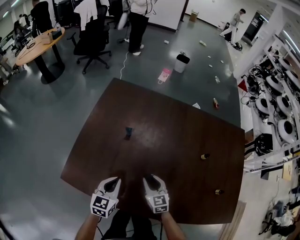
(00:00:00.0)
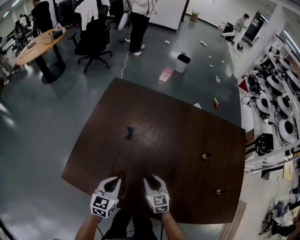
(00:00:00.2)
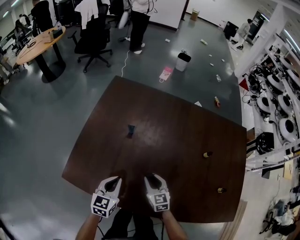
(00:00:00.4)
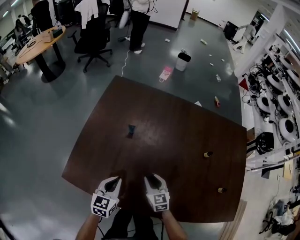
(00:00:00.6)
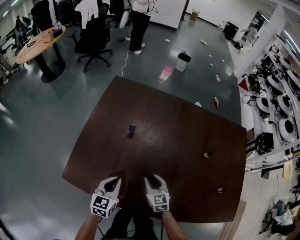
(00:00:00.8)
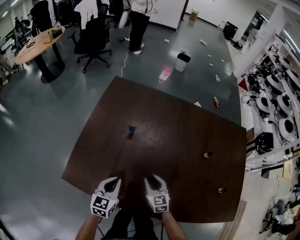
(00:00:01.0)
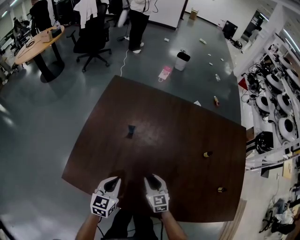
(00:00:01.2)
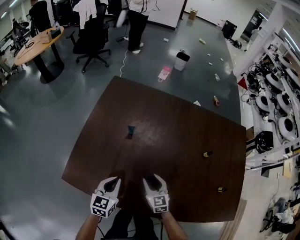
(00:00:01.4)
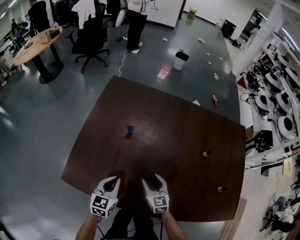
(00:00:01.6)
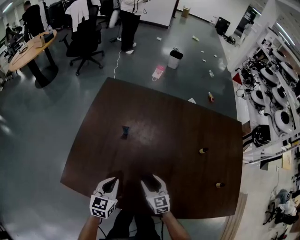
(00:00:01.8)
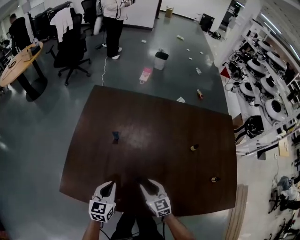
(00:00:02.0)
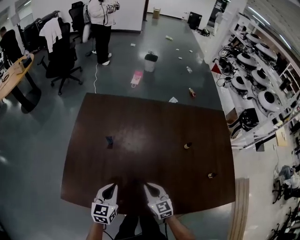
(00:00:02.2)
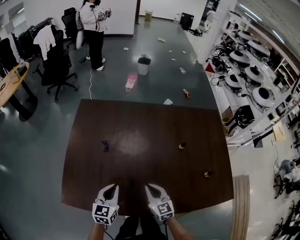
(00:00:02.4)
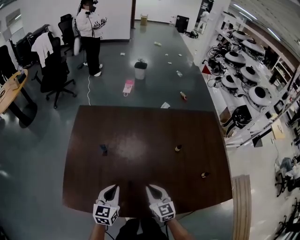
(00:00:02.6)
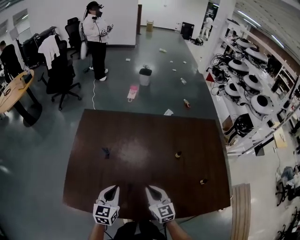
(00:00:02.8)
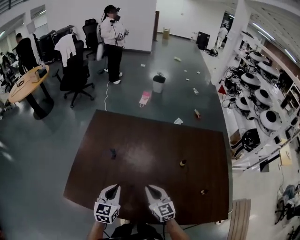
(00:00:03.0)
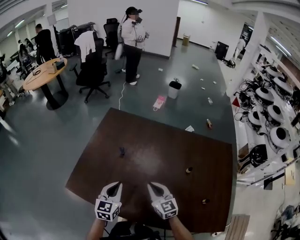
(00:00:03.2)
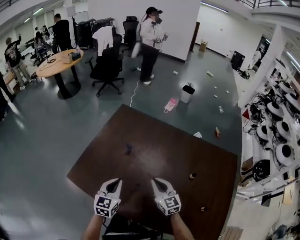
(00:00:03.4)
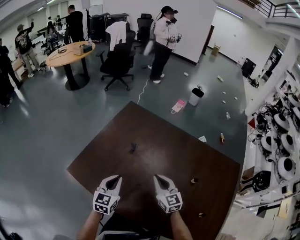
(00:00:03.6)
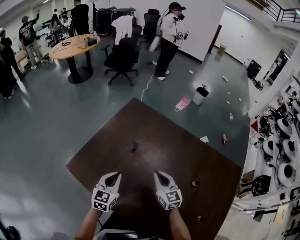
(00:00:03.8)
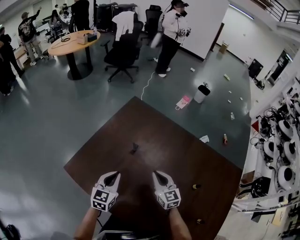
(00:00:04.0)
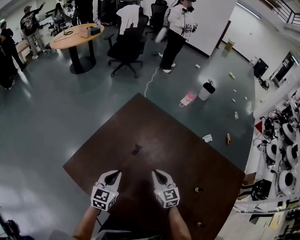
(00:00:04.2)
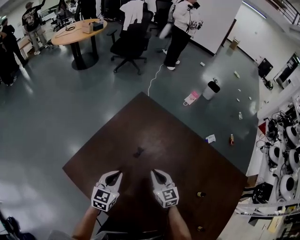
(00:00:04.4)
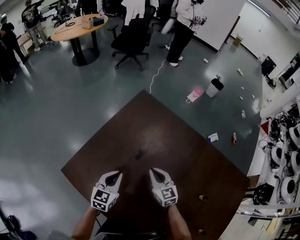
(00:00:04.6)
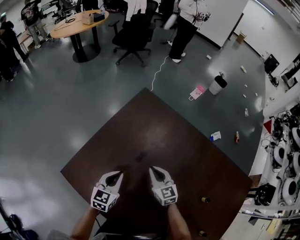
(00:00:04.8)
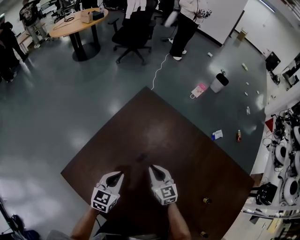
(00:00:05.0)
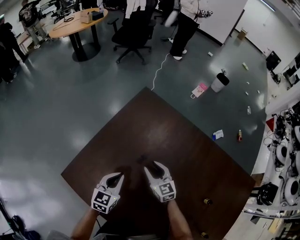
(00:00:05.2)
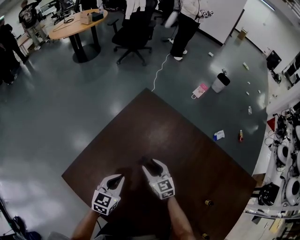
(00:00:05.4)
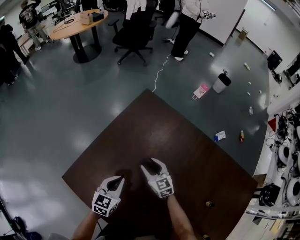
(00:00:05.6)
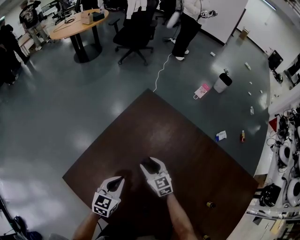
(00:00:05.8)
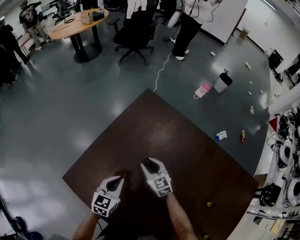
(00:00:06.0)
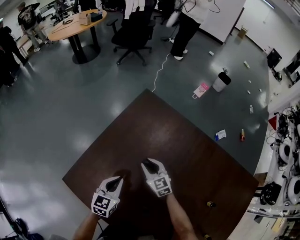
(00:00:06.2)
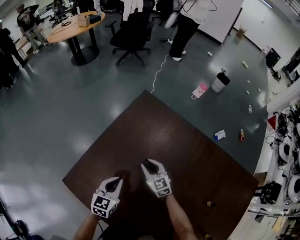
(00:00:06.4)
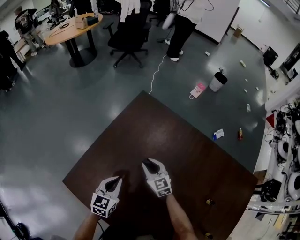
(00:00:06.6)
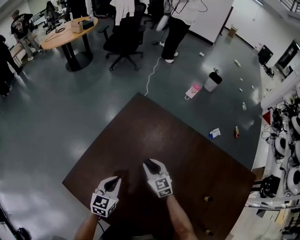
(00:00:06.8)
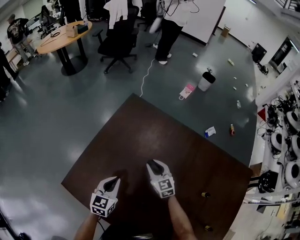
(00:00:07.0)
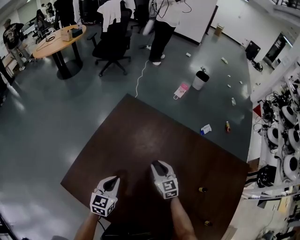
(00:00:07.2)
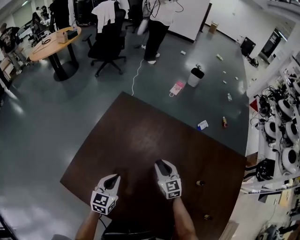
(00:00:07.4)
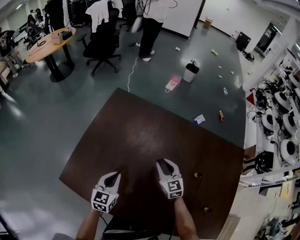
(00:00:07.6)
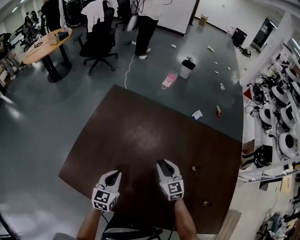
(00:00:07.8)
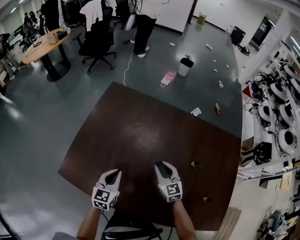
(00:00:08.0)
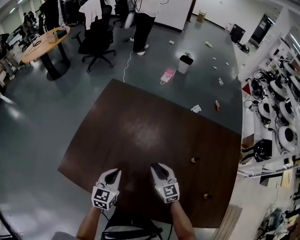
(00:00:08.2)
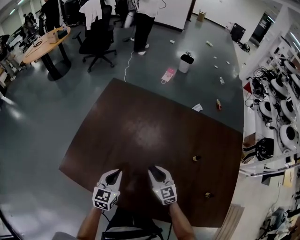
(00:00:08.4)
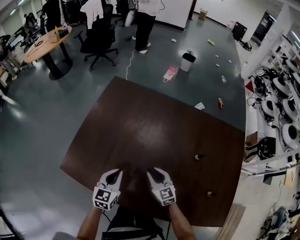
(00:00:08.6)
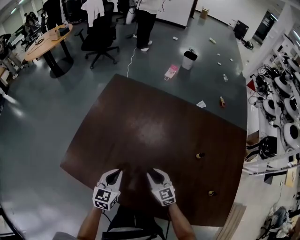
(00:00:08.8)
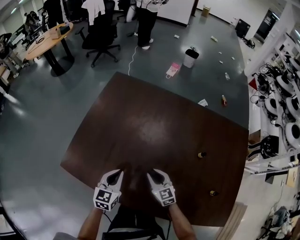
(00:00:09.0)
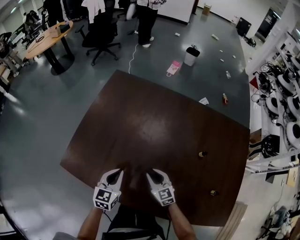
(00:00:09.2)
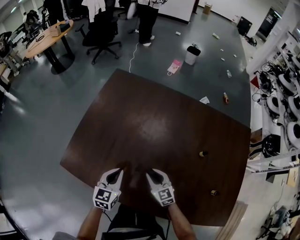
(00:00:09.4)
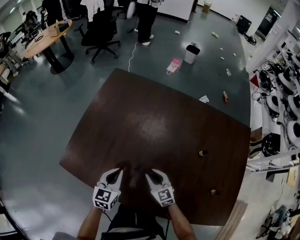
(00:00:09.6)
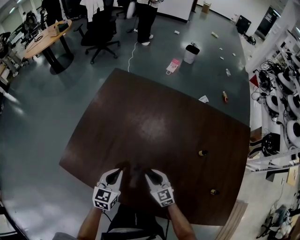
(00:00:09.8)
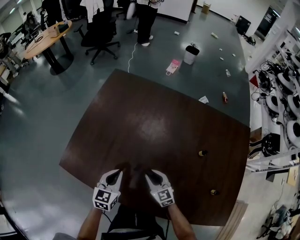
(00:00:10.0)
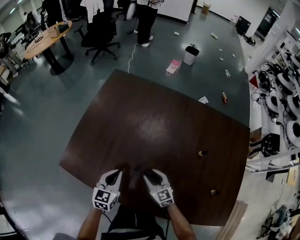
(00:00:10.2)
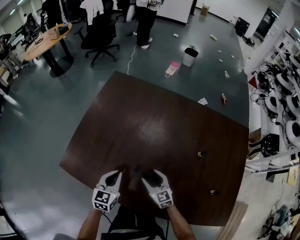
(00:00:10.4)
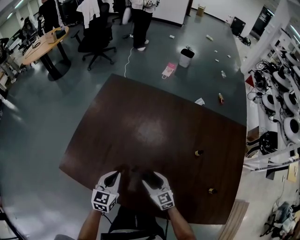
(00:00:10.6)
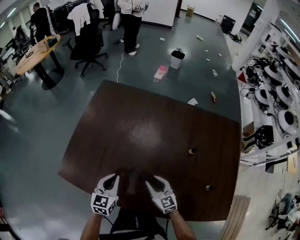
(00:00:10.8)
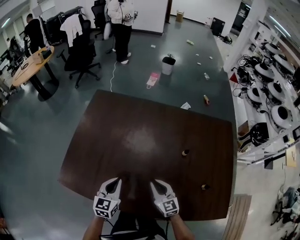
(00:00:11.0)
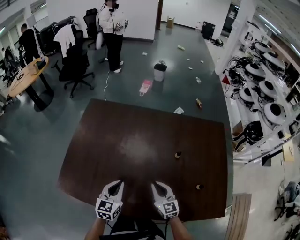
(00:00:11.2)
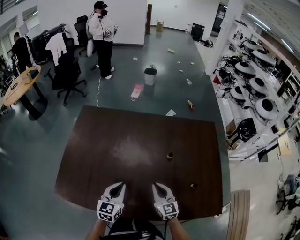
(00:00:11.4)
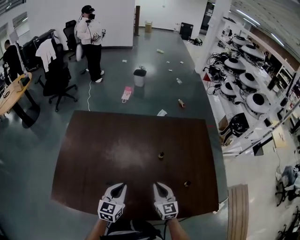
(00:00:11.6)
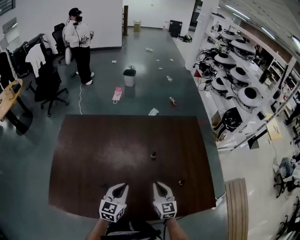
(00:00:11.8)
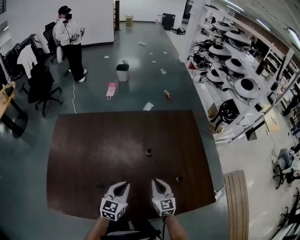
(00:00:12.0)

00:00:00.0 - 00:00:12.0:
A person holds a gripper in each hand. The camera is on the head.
00:00:00.0 - 00:00:01.6: The right gripper opens its fingers.
00:00:01.6 - 00:00:03.0: The grippers both shift upward and to the right by approximately 15 cm. The right gripper closes up.
00:00:03.0 - 00:00:04.4: The right gripper goes approximately 20 cm forward and downward, and changes its angle by approximately 30 degrees. Meanwhile the left gripper shifts some 10 cm forward, downward and to the left.
00:00:04.4 - 00:00:06.0: The right gripper goes about 15 cm forward, downward and to the left, and opens its fingers; the left gripper travels downward by roughly 5 cm.
00:00:06.0 - 00:00:07.6: The left gripper is displaced backward, upward and to the right by some 10 cm. The right gripper travels to the right, backward and upward by about 20 cm, and turns by some 30 degrees.
00:00:07.6 - 00:00:09.0: The right gripper travels backward and downward by some 20 cm, while the left gripper heads backward, covering approximately 10 cm.
00:00:09.0 - 00:00:10.4: The right gripper opens.
00:00:10.4 - 00:00:12.0: The left gripper ends up some 25 cm from where it was, and swivels roughly 30 degrees. The right gripper ends up roughly 25 cm from where it was, changes its angle by approximately 40 degrees, and closes its fingers.

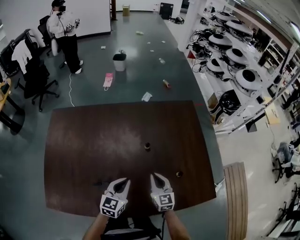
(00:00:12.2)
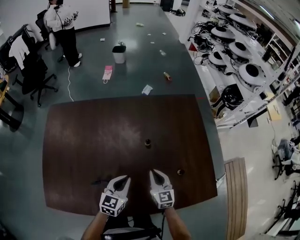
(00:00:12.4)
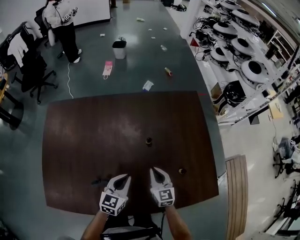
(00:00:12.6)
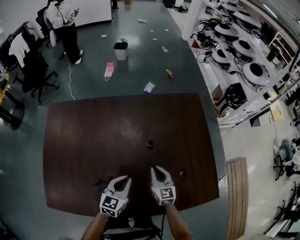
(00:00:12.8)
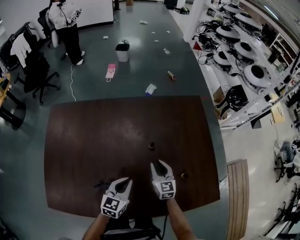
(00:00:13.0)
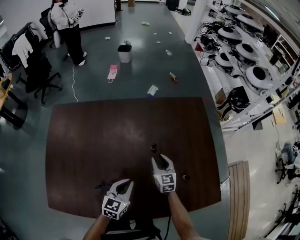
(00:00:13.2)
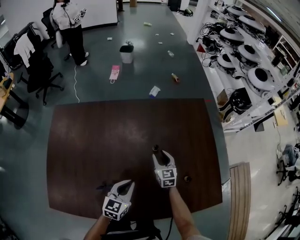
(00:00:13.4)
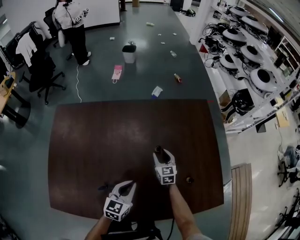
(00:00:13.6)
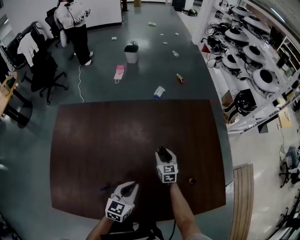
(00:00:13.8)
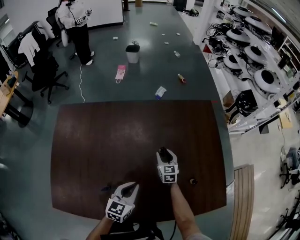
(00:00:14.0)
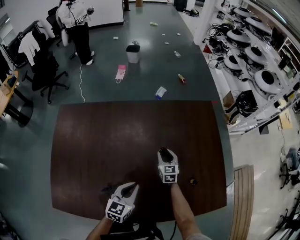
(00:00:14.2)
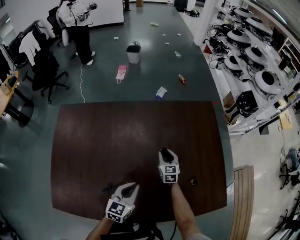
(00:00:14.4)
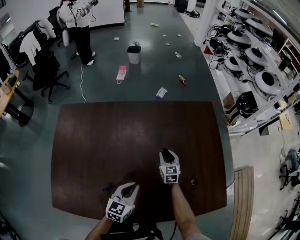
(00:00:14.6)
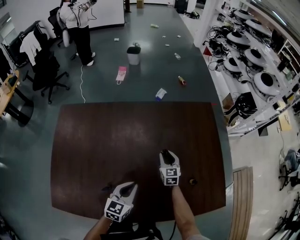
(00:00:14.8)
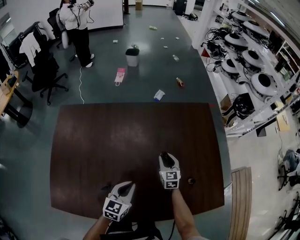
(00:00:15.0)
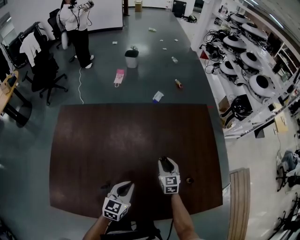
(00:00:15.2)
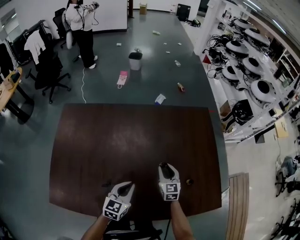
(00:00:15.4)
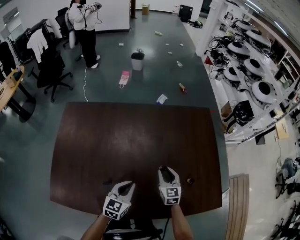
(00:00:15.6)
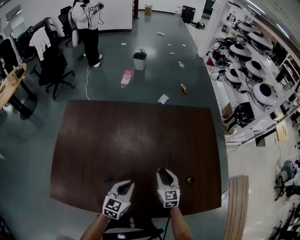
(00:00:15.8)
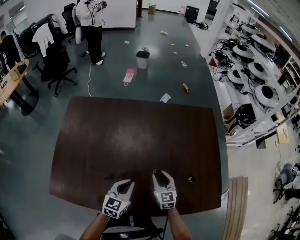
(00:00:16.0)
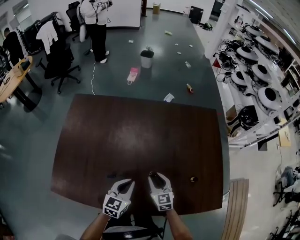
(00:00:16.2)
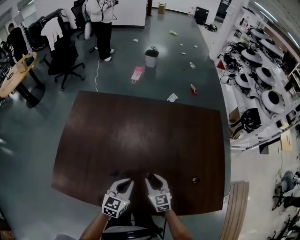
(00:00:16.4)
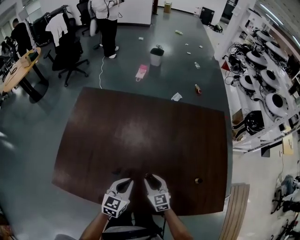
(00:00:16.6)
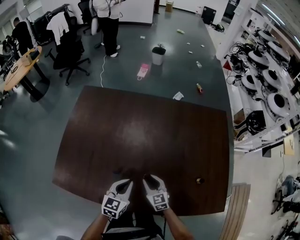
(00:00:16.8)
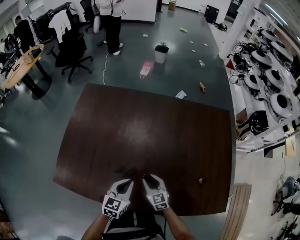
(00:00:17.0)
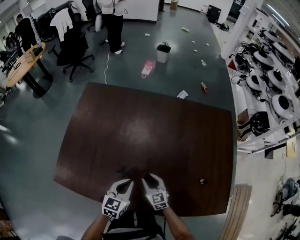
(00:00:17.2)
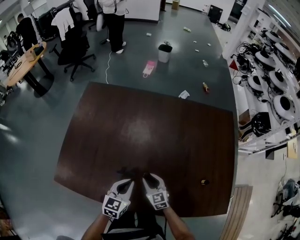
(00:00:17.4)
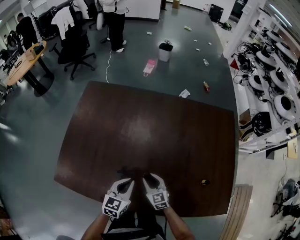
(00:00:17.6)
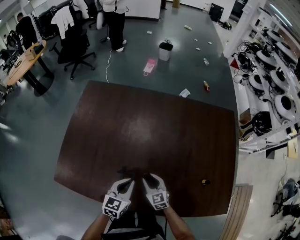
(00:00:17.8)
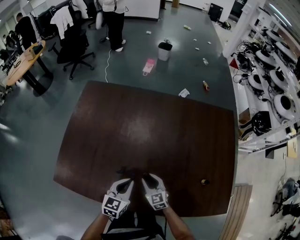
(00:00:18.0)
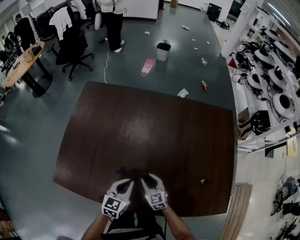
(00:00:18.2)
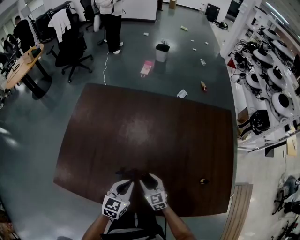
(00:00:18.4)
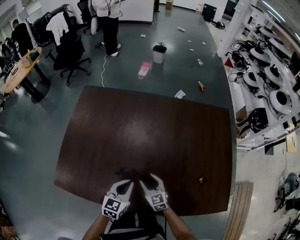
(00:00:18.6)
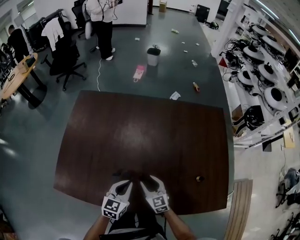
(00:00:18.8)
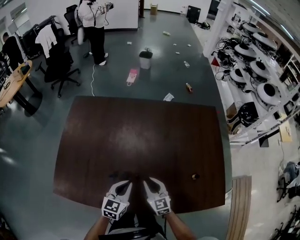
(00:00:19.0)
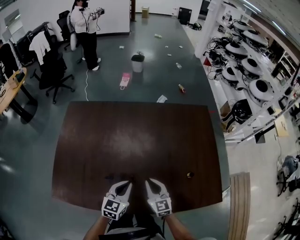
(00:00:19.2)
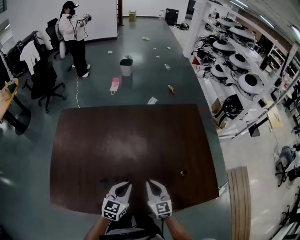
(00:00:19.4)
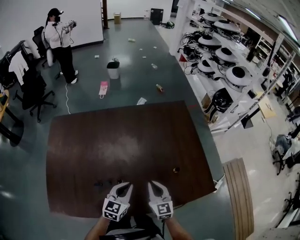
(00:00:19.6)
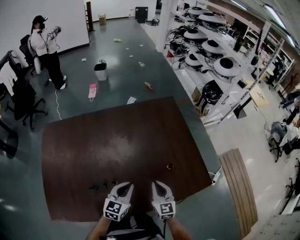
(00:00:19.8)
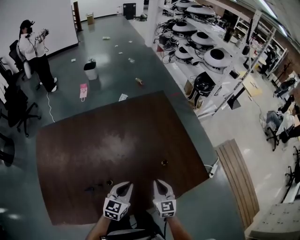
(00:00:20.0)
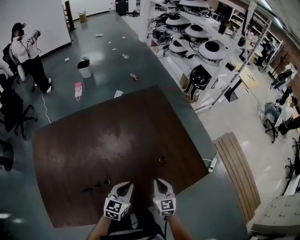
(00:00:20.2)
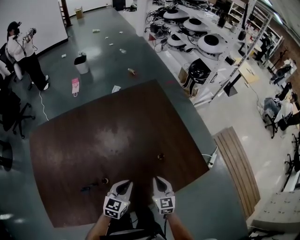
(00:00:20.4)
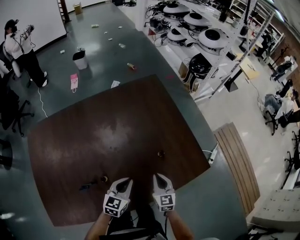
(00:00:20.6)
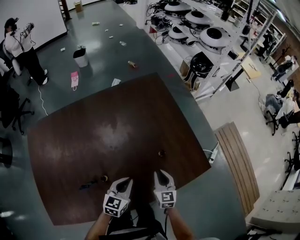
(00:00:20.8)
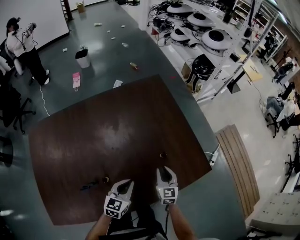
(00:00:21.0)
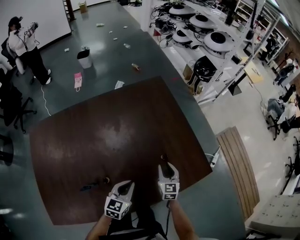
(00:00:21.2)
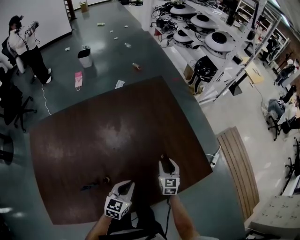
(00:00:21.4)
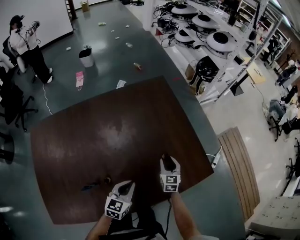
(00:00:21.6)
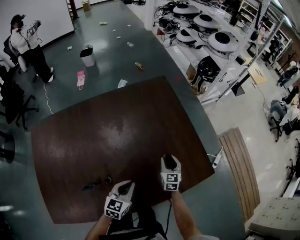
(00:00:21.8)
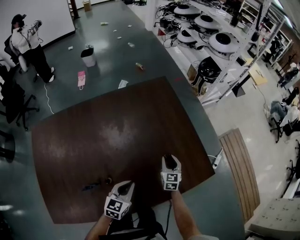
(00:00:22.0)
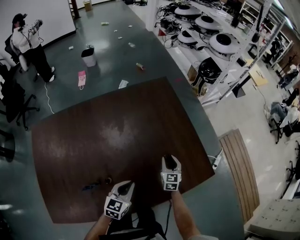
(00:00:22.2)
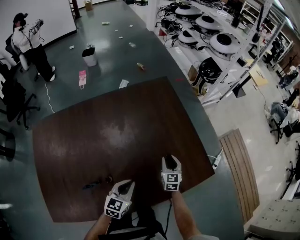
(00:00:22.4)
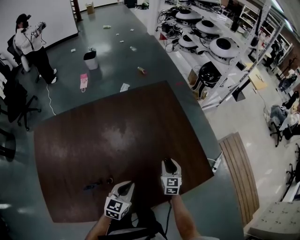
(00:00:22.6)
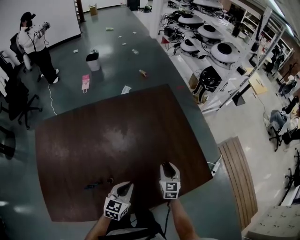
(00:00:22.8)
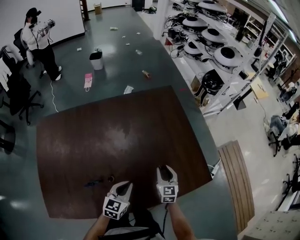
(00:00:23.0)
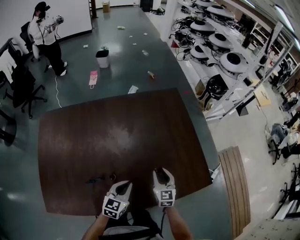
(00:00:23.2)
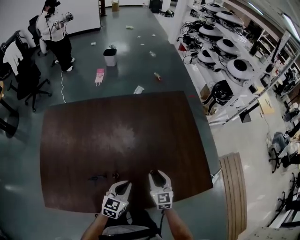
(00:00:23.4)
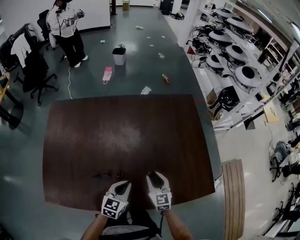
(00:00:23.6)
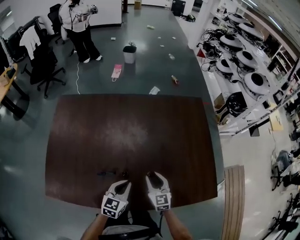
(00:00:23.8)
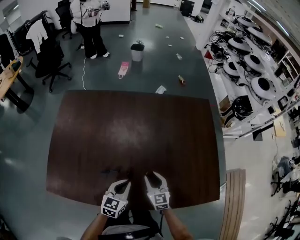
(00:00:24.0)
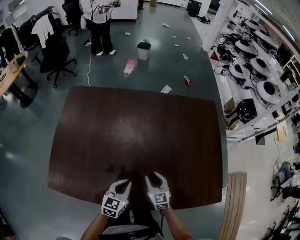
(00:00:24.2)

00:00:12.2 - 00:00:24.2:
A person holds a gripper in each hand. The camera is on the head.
00:00:12.2 - 00:00:13.8: The right gripper is displaced forward and downward by about 20 cm, and opens.
00:00:13.8 - 00:00:15.2: The right gripper ends up about 5 cm from where it was.
00:00:15.2 - 00:00:16.6: The left gripper moves to the left, approximately 5 cm; the right gripper heads backward and to the left, covering some 20 cm, and turns by about 20 degrees.
00:00:16.6 - 00:00:18.2: The right gripper shifts by roughly 5 cm.
00:00:18.2 - 00:00:19.8: The right gripper changes place by roughly 25 cm, changes its angle by approximately 40 degrees, and closes. Meanwhile the left gripper changes place by approximately 15 cm, and turns by about 30 degrees.
00:00:19.8 - 00:00:21.2: The right gripper goes some 15 cm downward, to the right and forward, and opens, while the left gripper is displaced downward by about 5 cm.
00:00:21.2 - 00:00:22.6: The grippers make only small movements.
00:00:22.6 - 00:00:24.2: The right gripper changes place by approximately 25 cm, and swivels some 40 degrees, while the left gripper shifts by approximately 15 cm, and rotates about 20 degrees.
